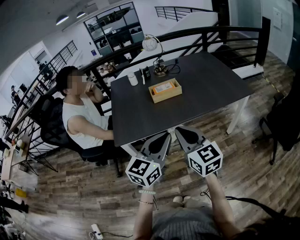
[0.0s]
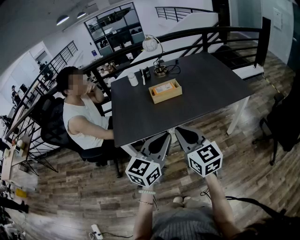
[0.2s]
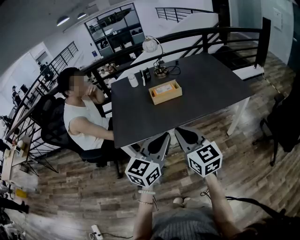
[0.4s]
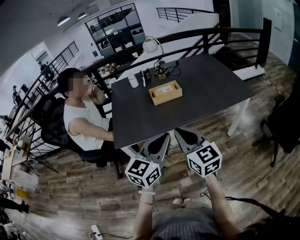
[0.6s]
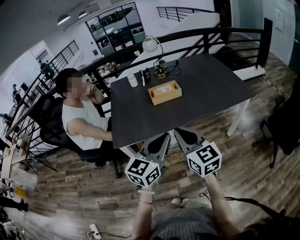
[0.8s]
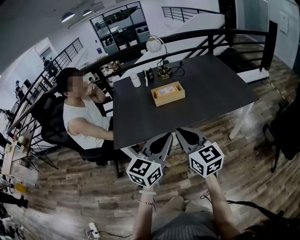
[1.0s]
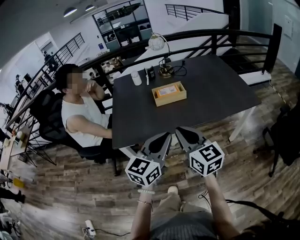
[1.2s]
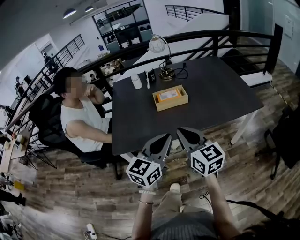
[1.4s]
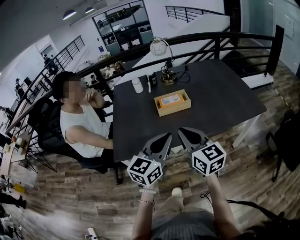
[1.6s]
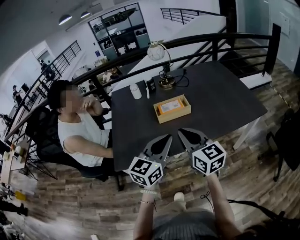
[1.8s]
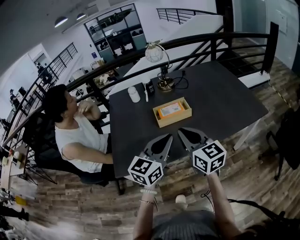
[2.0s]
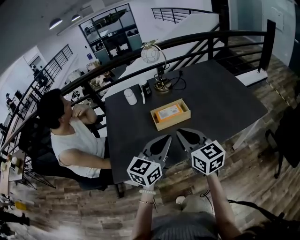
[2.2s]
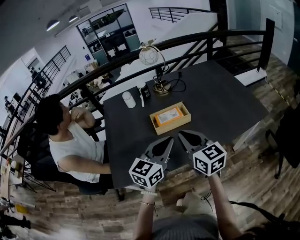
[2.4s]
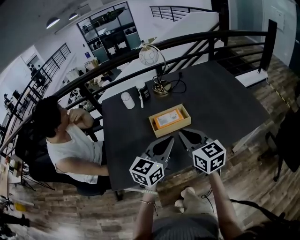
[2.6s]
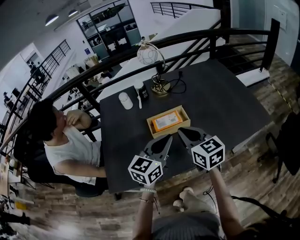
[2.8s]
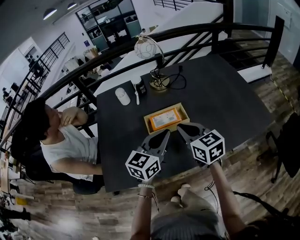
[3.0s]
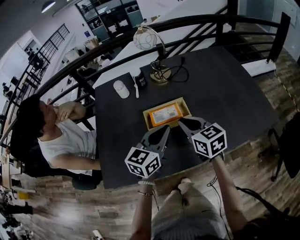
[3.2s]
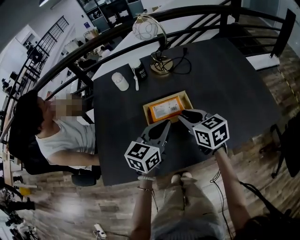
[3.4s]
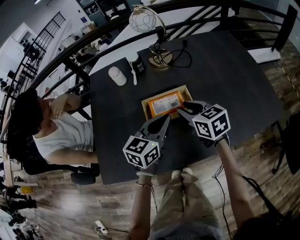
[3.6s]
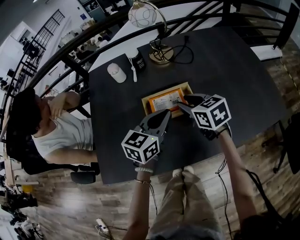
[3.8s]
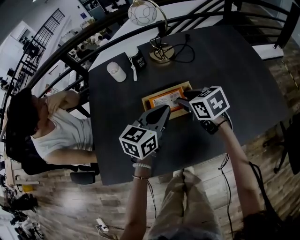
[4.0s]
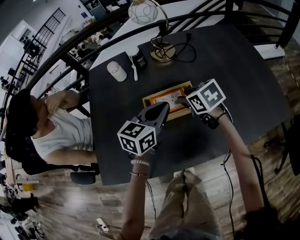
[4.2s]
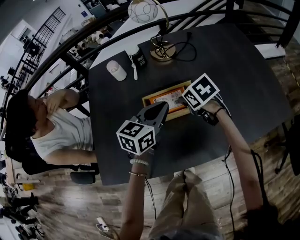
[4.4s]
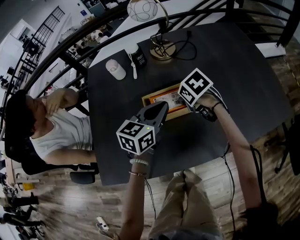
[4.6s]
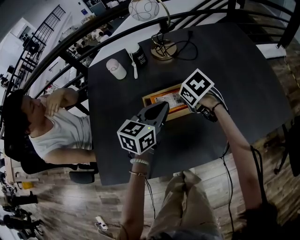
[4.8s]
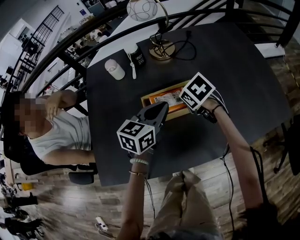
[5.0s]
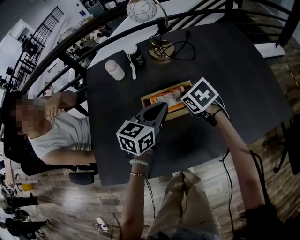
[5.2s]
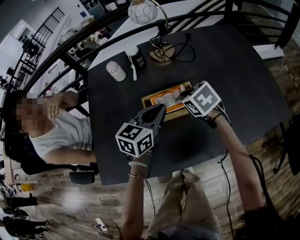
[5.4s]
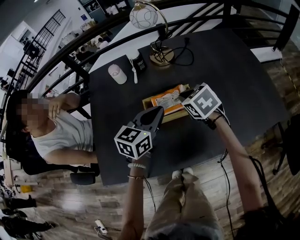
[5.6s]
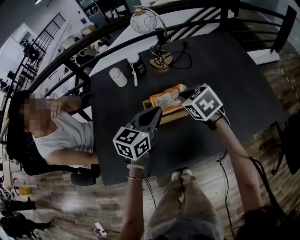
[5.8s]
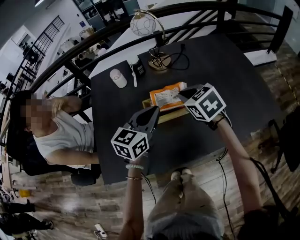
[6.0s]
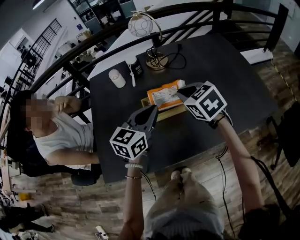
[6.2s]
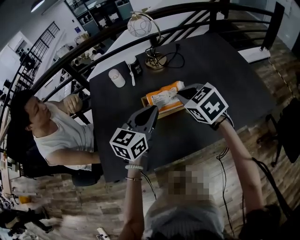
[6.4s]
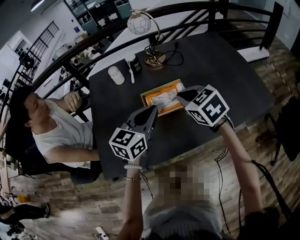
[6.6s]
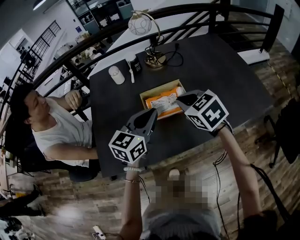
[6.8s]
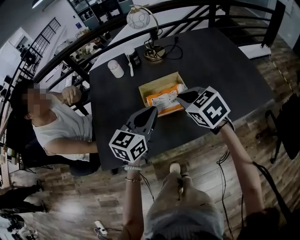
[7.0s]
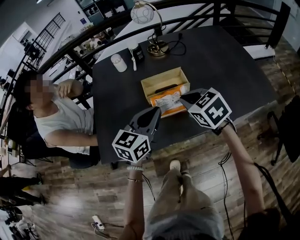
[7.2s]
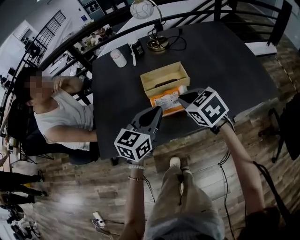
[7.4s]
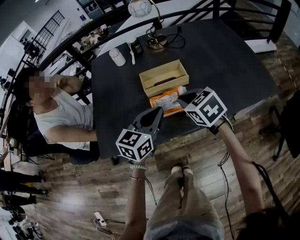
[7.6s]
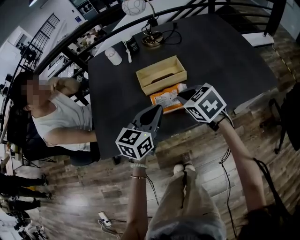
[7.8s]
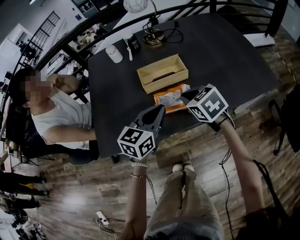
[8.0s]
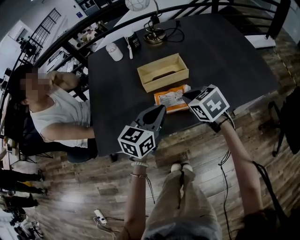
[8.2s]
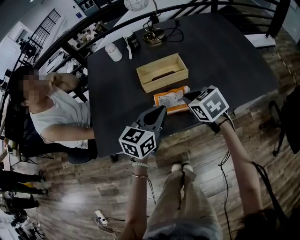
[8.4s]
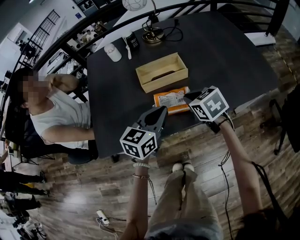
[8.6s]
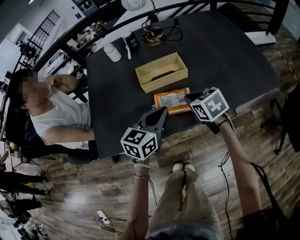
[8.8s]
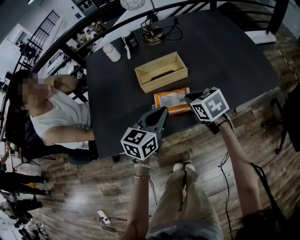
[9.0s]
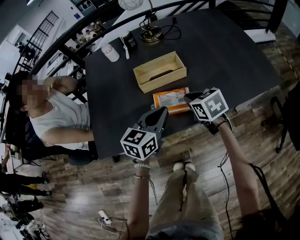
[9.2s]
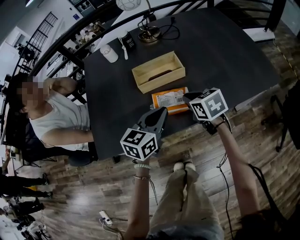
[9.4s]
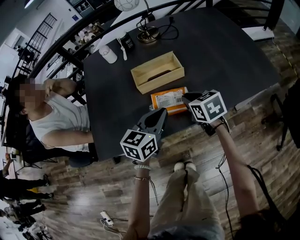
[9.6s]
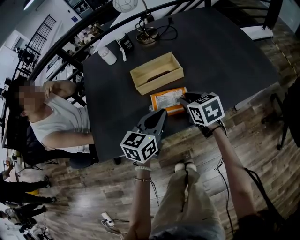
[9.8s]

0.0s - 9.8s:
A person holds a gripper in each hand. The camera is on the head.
0.0s - 1.4s: The two grippers go about 10 cm forward.
1.4s - 2.8s: The two grippers go roughly 25 cm forward.
2.8s - 4.2s: The two grippers go some 20 cm forward and downward. The right gripper tips its fingers downward by some 30 degrees, and opens up.
4.2s - 5.6s: The right gripper closes.
5.6s - 7.0s: The grippers both shift backward and upward by some 15 cm.
7.0s - 8.4s: The two grippers go some 10 cm downward.
8.4s - 9.8s: The right gripper opens its fingers.

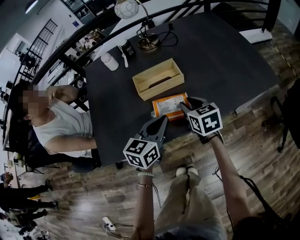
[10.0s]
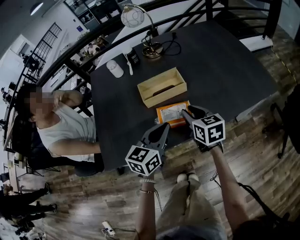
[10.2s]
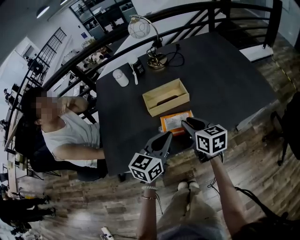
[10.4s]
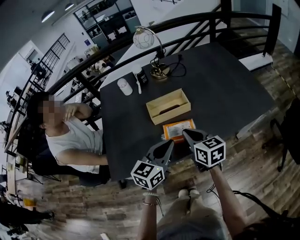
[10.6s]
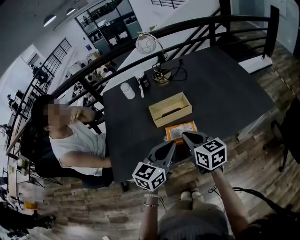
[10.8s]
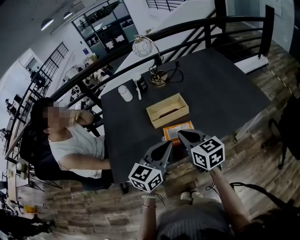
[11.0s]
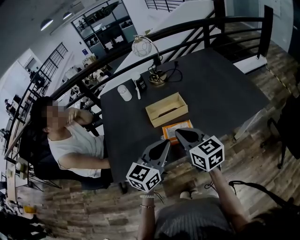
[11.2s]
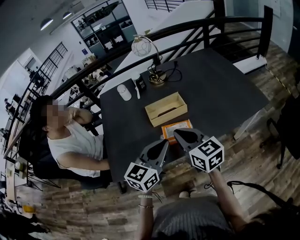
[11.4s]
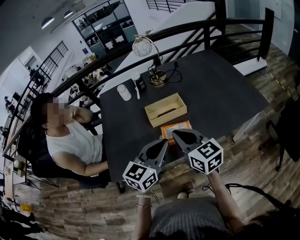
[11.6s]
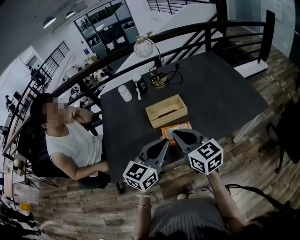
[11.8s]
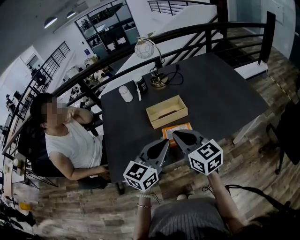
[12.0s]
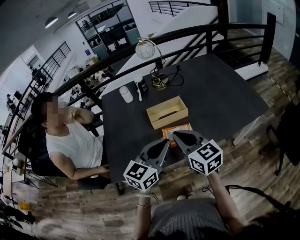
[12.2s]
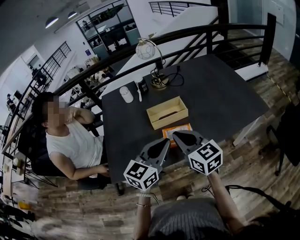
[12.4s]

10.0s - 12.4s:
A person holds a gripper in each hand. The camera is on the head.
10.0s - 11.2s: The two grippers go roughly 15 cm upward and backward. The right gripper changes its angle by about 20 degrees, and closes its fingers.
11.2s - 12.4s: There are only small adjustments of the grippers.

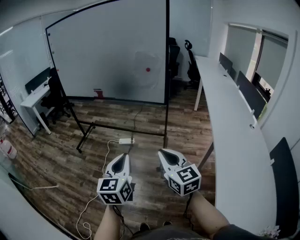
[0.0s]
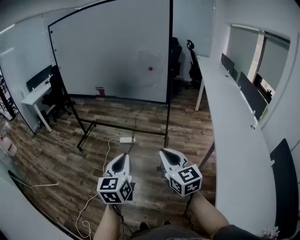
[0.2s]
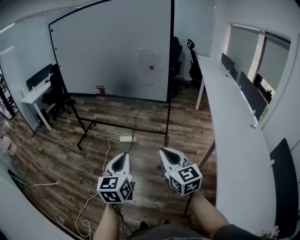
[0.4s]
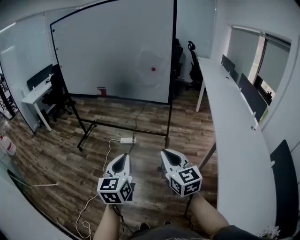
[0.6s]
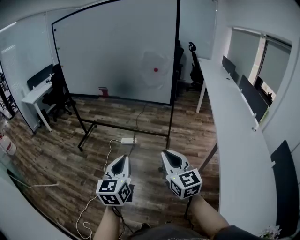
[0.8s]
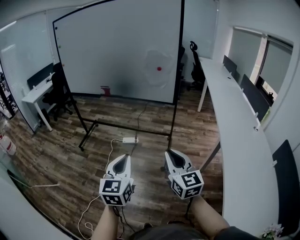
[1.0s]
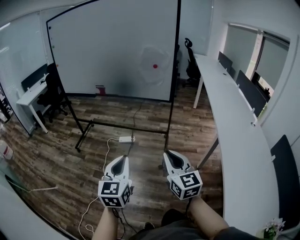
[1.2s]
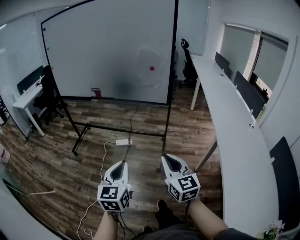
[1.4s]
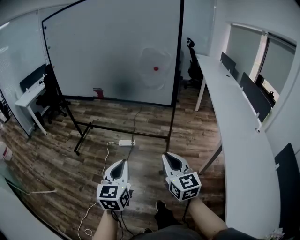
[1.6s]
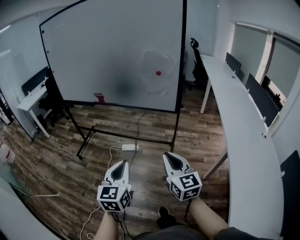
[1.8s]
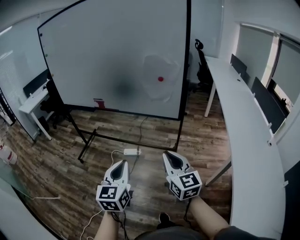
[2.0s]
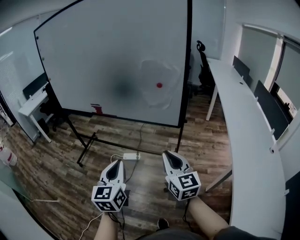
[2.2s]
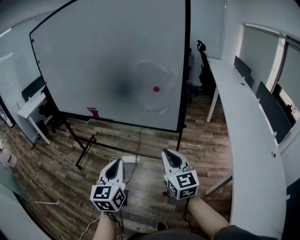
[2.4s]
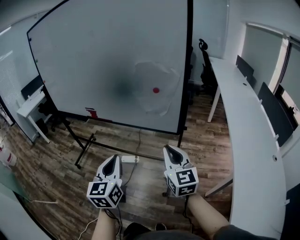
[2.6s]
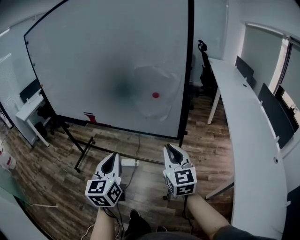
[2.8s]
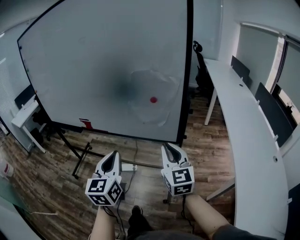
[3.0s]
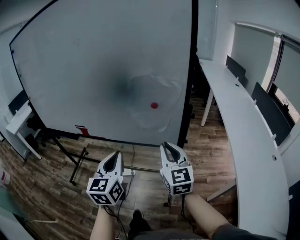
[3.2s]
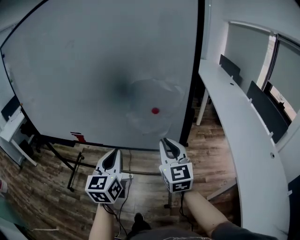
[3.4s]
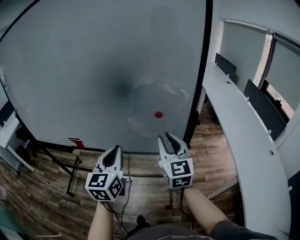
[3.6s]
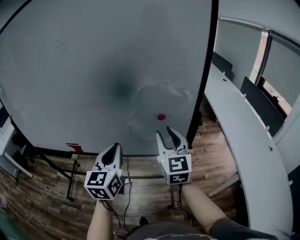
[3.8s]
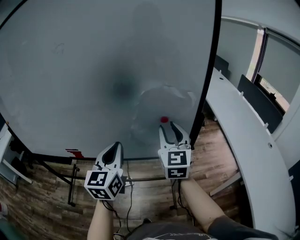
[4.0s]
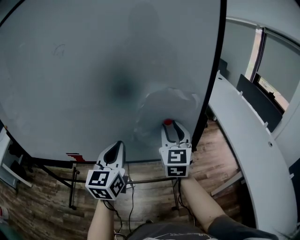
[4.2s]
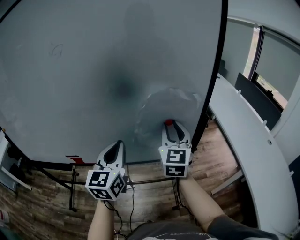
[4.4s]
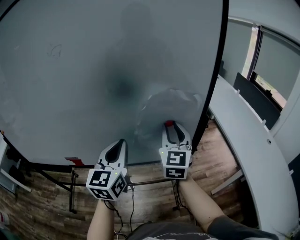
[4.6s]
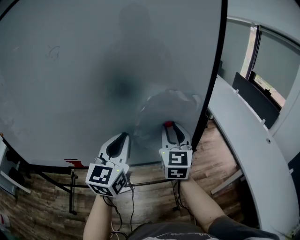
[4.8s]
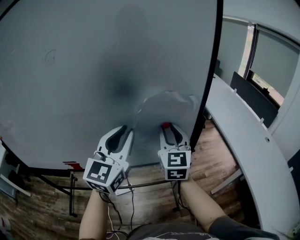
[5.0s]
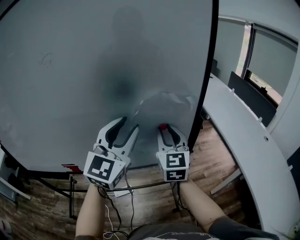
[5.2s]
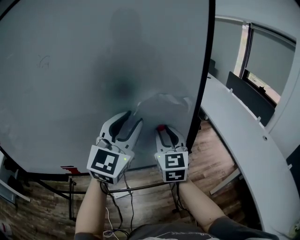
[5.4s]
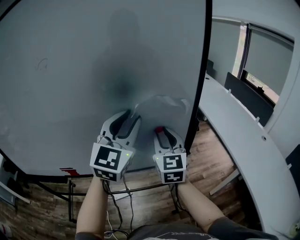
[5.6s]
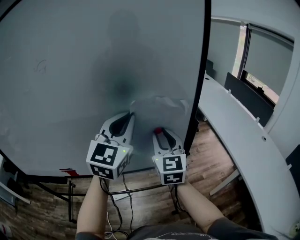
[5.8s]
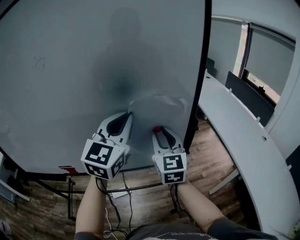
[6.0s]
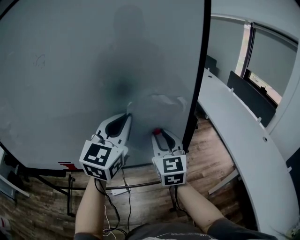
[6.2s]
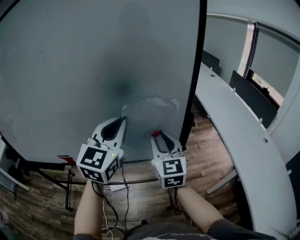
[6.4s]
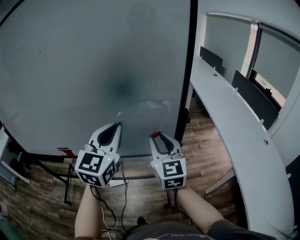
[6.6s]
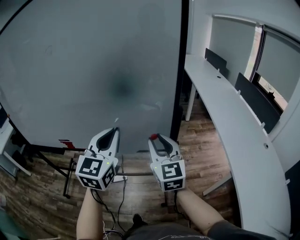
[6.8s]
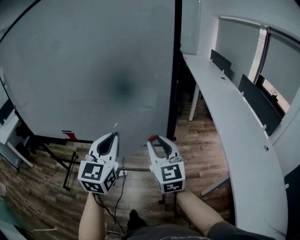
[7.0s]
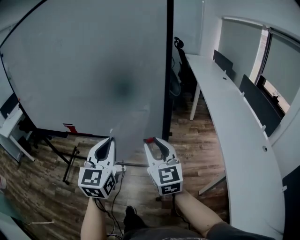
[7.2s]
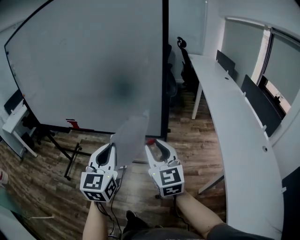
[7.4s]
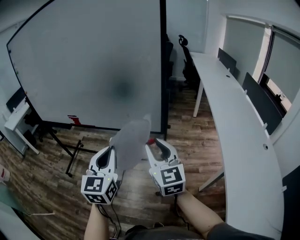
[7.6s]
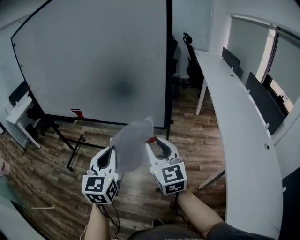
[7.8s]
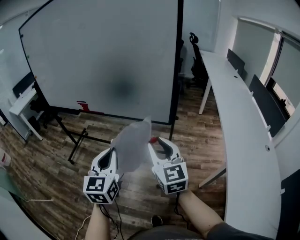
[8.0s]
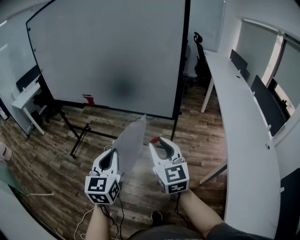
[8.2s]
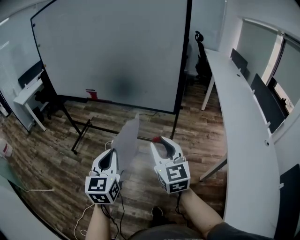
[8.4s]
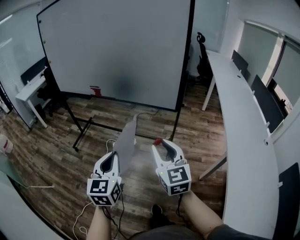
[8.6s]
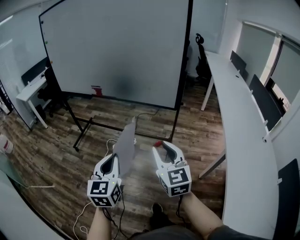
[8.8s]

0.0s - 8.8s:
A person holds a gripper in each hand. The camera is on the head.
0.0s - 1.4s: The right gripper shifts by about 5 cm. The left gripper moves to the left, about 5 cm.
1.4s - 3.0s: The two grippers go roughly 40 cm forward.
3.0s - 4.4s: The right gripper moves roughly 20 cm, rotates roughly 30 degrees, and opens, while the left gripper ends up roughly 25 cm from where it was, and rotates about 20 degrees.
4.4s - 5.8s: The left gripper heads upward, to the right and forward, covering some 15 cm, changes its angle by about 30 degrees, and opens, then closes once more.
5.8s - 7.4s: The right gripper moves some 25 cm, and rotates about 30 degrees. The left gripper changes place by some 30 cm, and changes its angle by about 30 degrees.
7.4s - 8.8s: Both grippers move backward and to the left, about 25 cm.

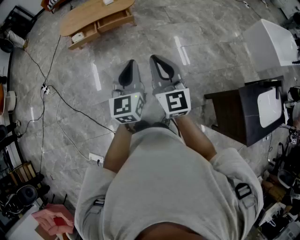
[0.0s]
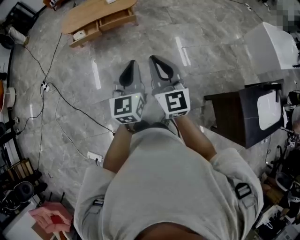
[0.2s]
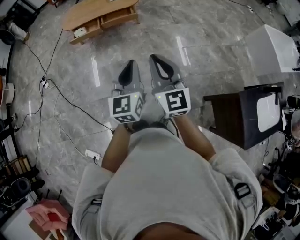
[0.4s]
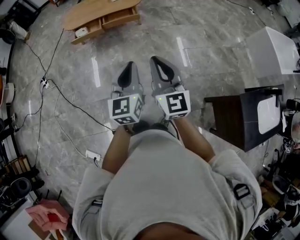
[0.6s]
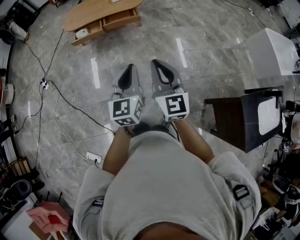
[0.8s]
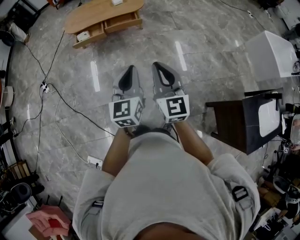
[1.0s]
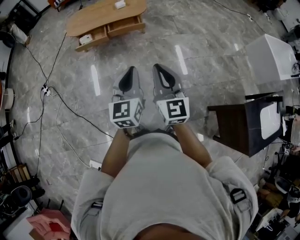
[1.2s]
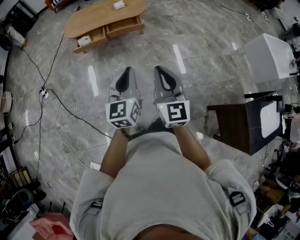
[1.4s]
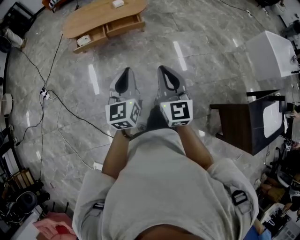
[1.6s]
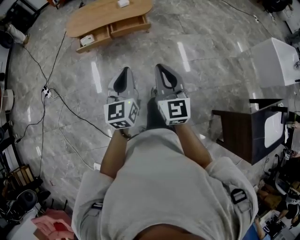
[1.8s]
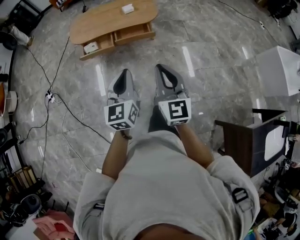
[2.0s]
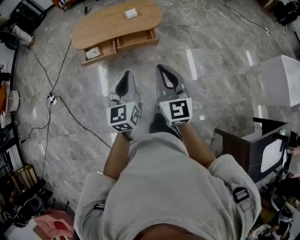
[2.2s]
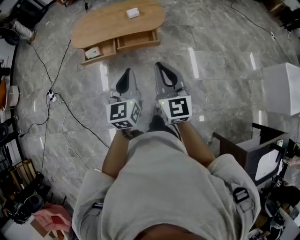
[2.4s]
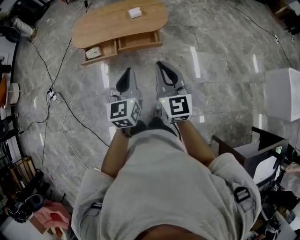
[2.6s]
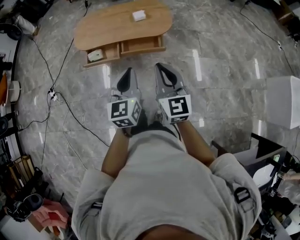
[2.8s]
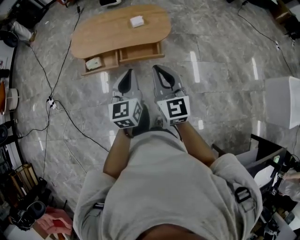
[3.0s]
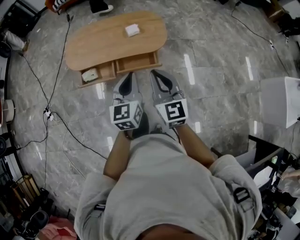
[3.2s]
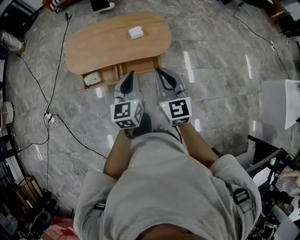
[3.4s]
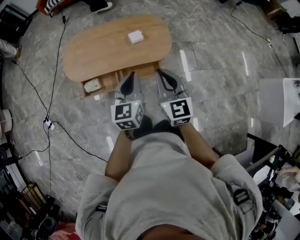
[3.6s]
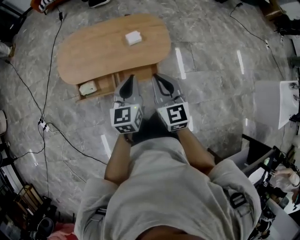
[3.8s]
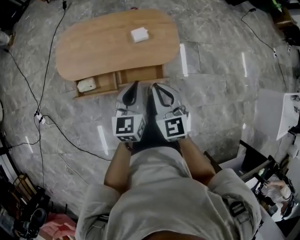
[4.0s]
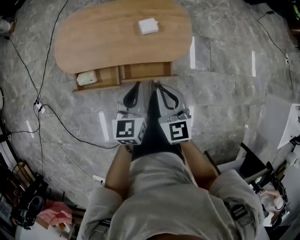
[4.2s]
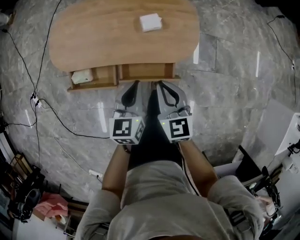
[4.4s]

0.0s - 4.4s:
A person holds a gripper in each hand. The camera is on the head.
0.0s - 1.4s: The two grippers go about 15 cm to the left and forward.
1.4s - 3.0s: The two grippers travel together, forward, about 40 cm.
3.0s - 4.4s: Both grippers travel together forward and downward, some 35 cm. The right gripper rotates roughly 20 degrees.
